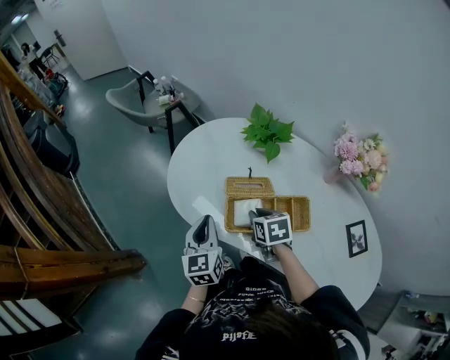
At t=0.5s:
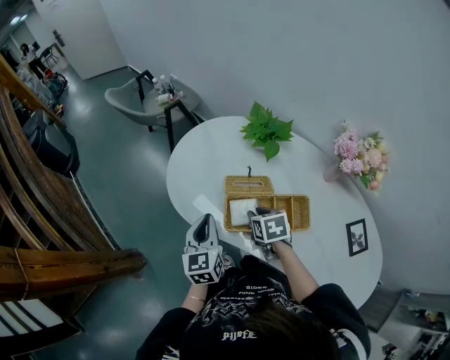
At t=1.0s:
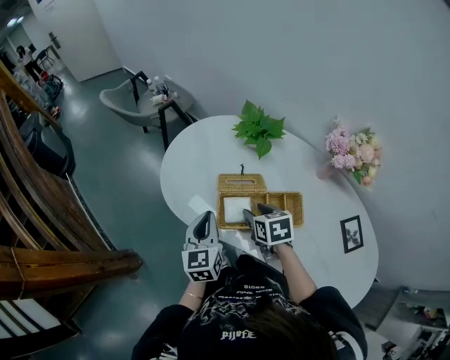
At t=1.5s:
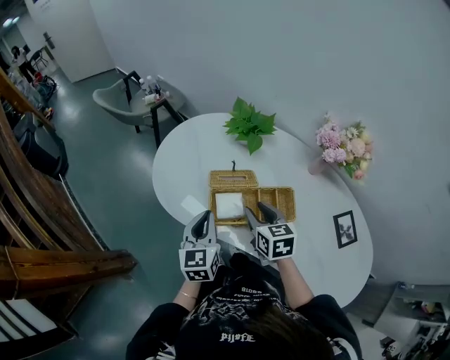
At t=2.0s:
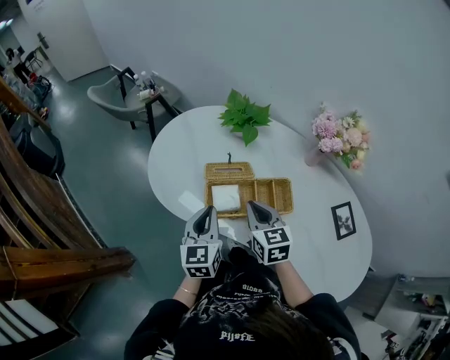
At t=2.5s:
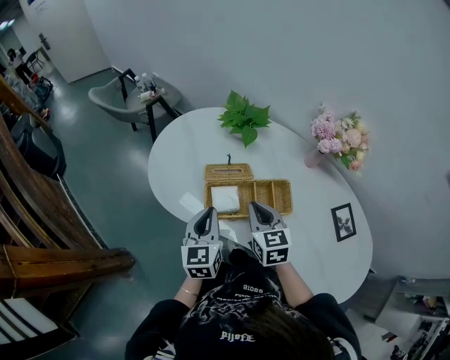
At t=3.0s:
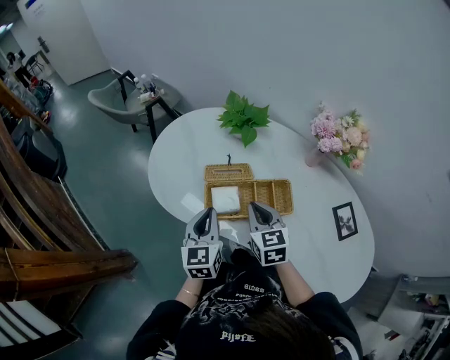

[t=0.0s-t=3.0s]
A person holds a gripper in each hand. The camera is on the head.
t=0.0s to t=1.5s: The right gripper is displaced upward by approximately 5 cm, and opens its fingers; the left gripper goes approximately 5 cm to the right.
t=1.5s to t=3.0s: The right gripper closes up.

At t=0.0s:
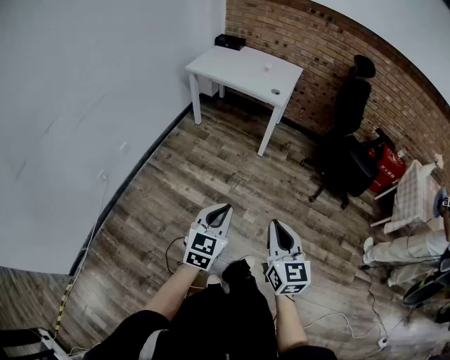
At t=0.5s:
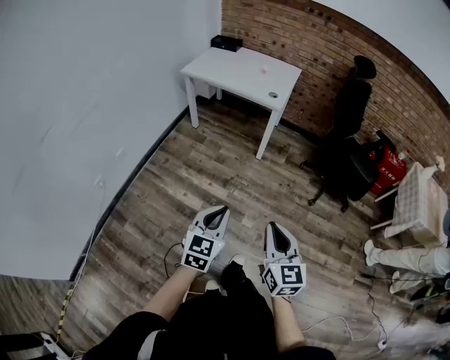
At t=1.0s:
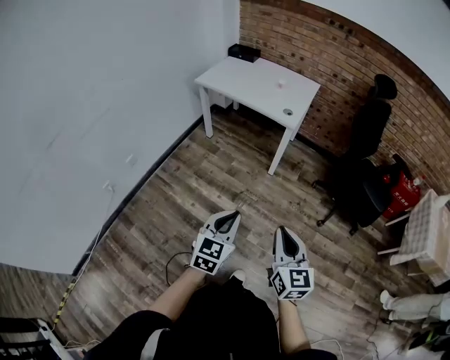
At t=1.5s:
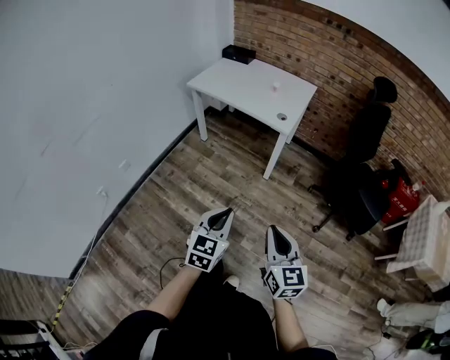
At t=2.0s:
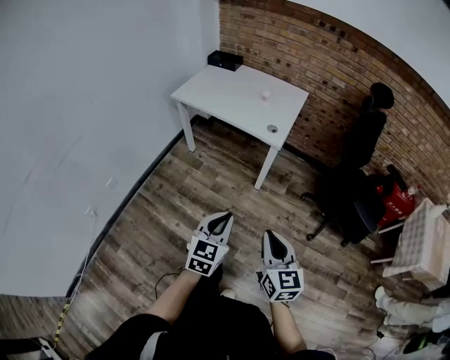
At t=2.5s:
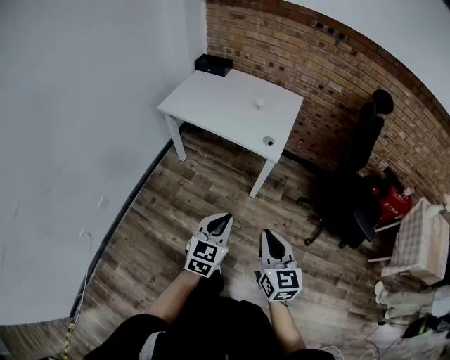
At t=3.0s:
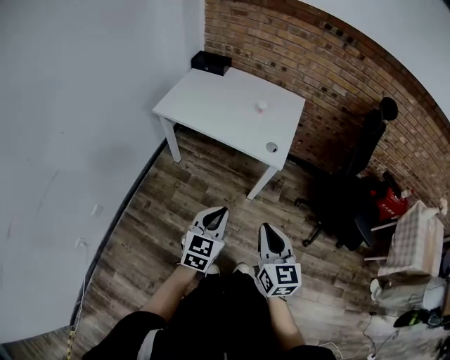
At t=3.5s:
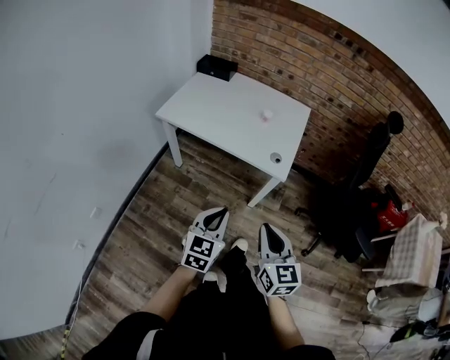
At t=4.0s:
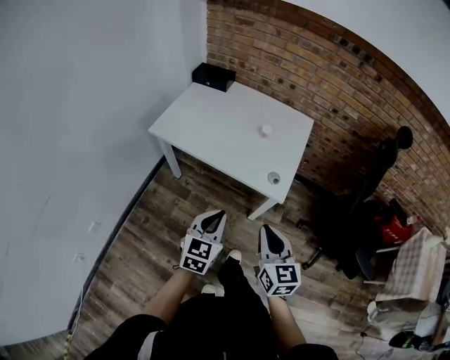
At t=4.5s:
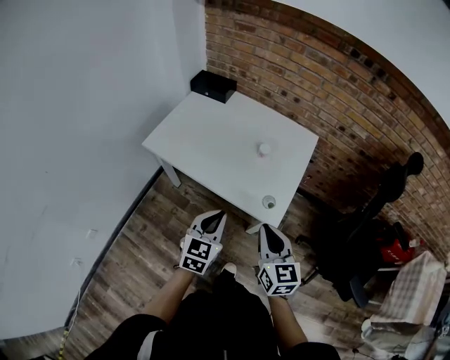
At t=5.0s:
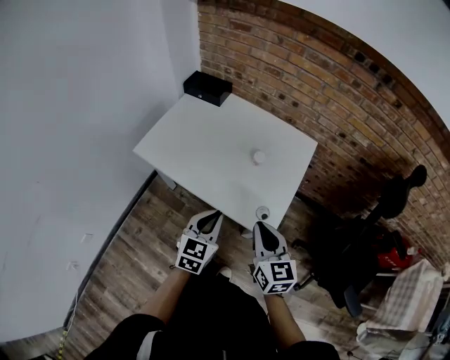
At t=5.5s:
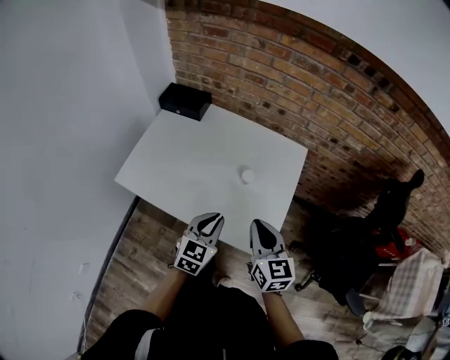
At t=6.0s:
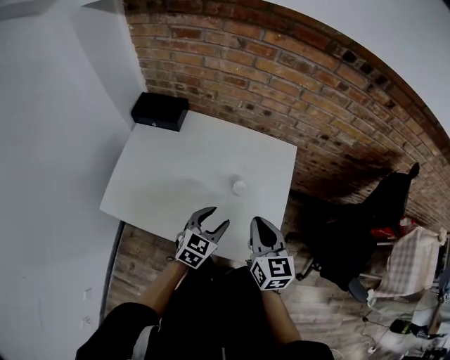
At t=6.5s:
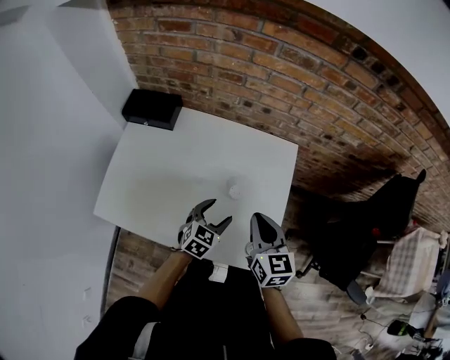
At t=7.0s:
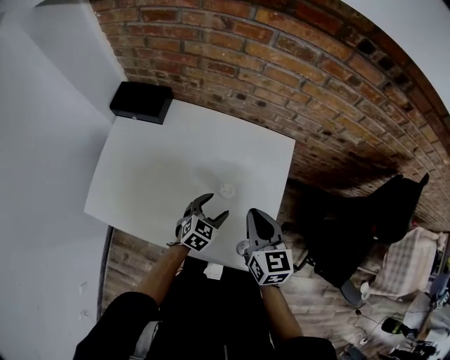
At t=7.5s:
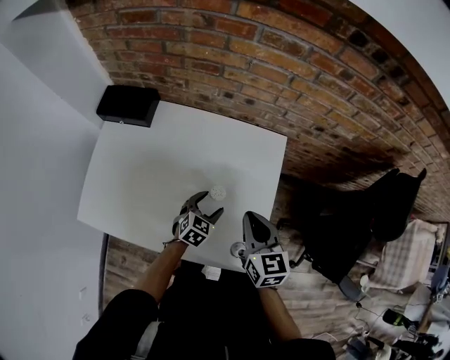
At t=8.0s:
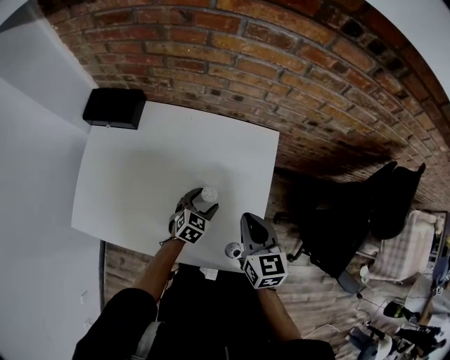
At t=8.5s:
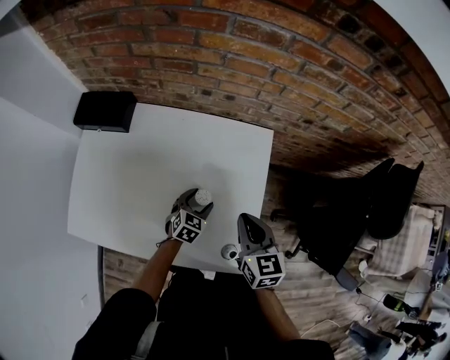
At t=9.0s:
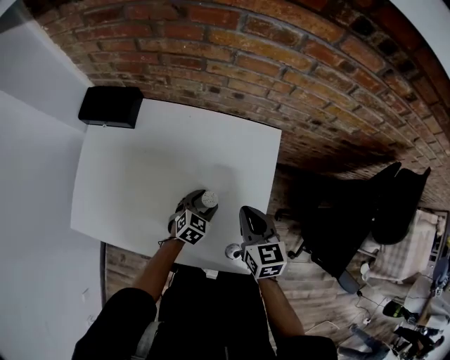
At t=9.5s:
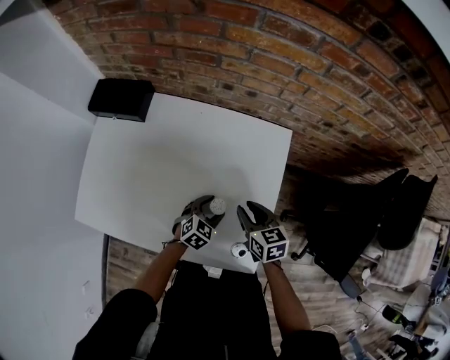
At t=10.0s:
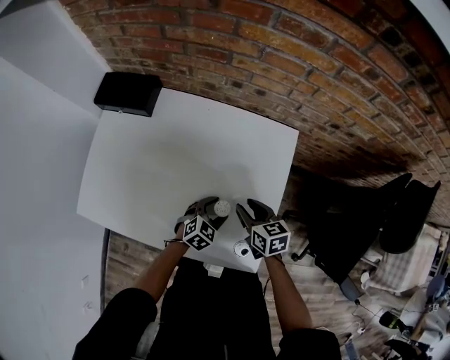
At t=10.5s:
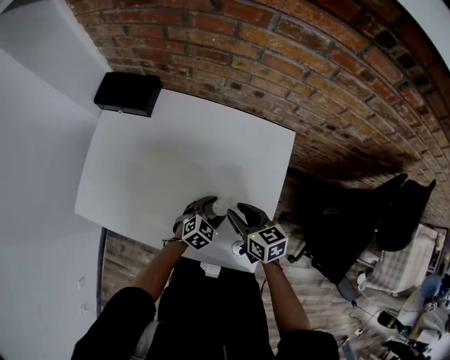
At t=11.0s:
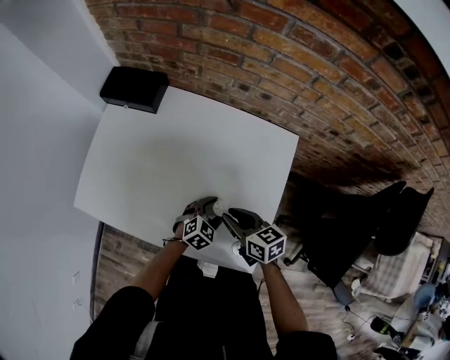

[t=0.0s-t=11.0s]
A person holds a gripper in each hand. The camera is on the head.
t=0.0s to t=2.0s: The grippers both shift forward by roughly 35 cm.
t=2.0s to t=3.5s: Both grippers move forward and to the left, about 25 cm.
t=3.5s to t=5.5s: The pair of grippers is taken forward, about 40 cm.
t=5.5s to t=7.5s: The right gripper goes roughly 15 cm forward; the left gripper heads forward and downward, covering some 25 cm, swivels approximately 20 degrees, and opens.
t=7.5s to t=9.0s: The right gripper goes about 5 cm downward.
t=9.0s to t=11.0s: The right gripper moves to the left and downward, some 10 cm, changes its angle by roughly 30 degrees, and opens its fingers. Meanwhile the left gripper goes approximately 5 cm backward.

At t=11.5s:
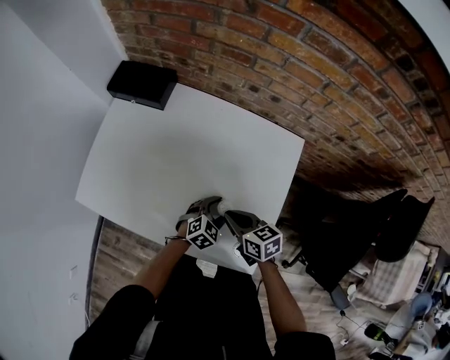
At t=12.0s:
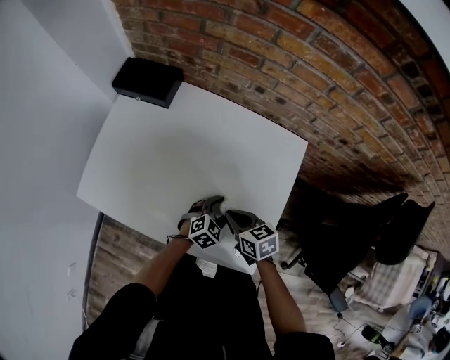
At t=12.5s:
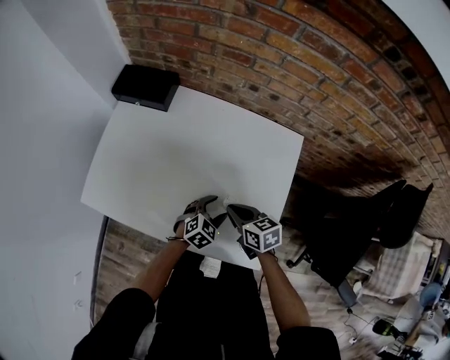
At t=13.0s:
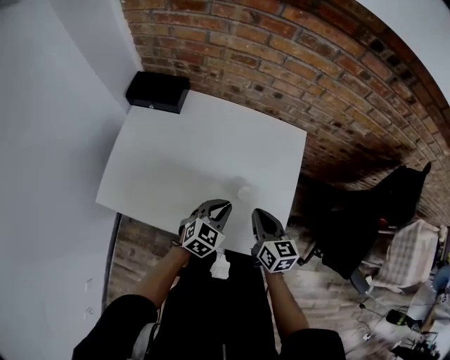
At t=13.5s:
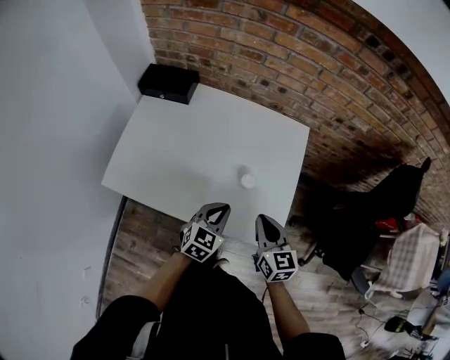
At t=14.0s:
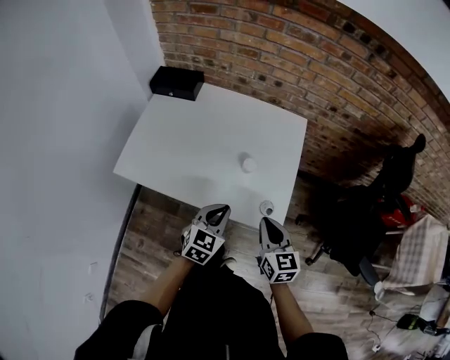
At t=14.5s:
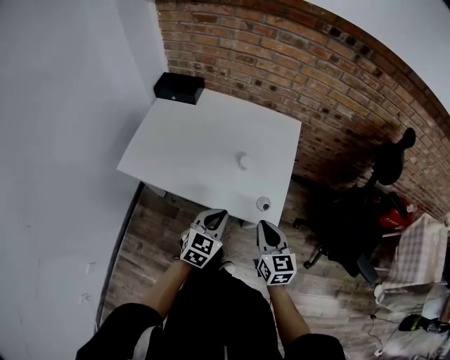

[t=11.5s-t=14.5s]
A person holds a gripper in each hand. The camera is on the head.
t=11.5s to t=13.0s: The left gripper shifts approximately 15 cm upward and to the left, and closes up, while the right gripper shifts approximately 5 cm upward, and changes its angle by about 30 degrees.
t=13.0s to t=14.5s: The grippers both shift backward by roughly 20 cm.

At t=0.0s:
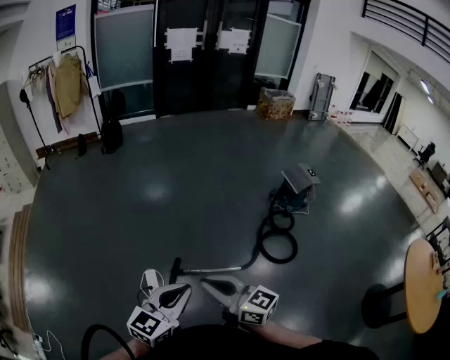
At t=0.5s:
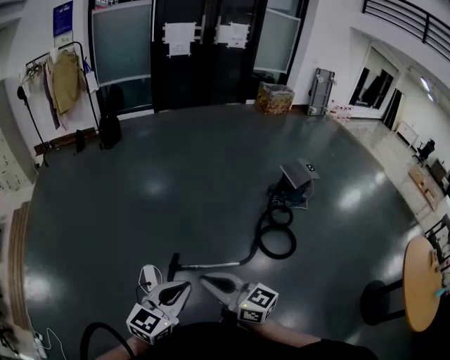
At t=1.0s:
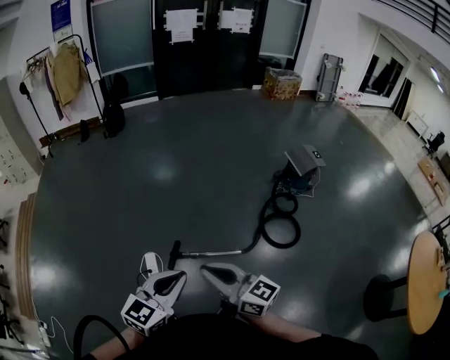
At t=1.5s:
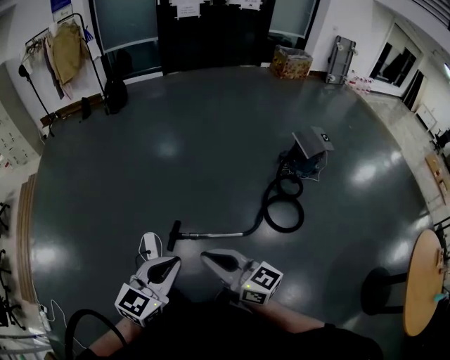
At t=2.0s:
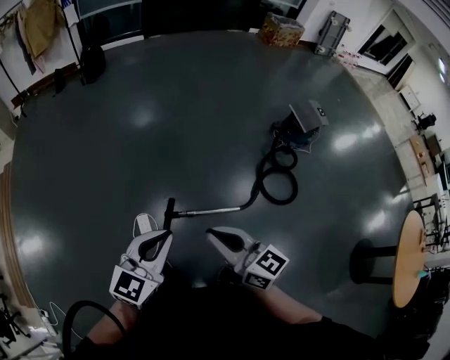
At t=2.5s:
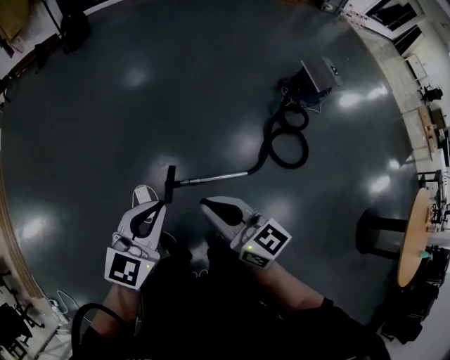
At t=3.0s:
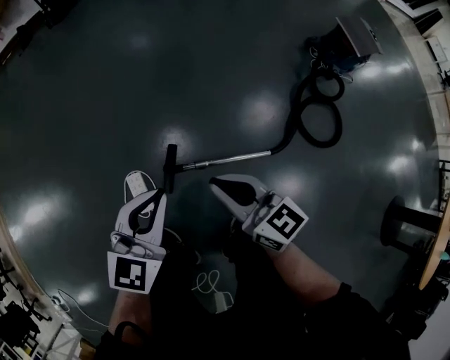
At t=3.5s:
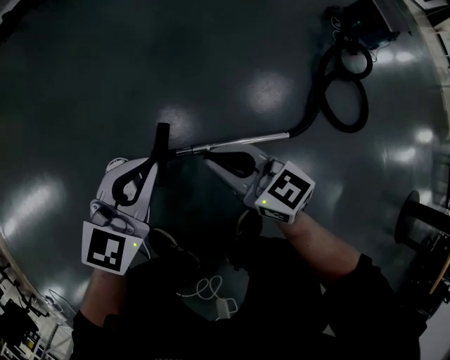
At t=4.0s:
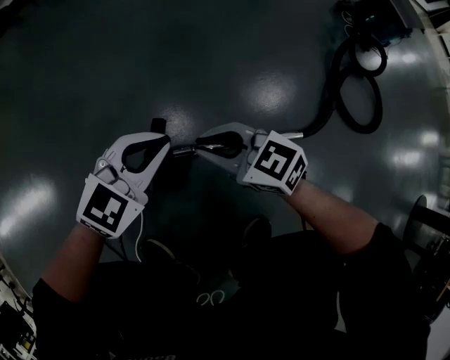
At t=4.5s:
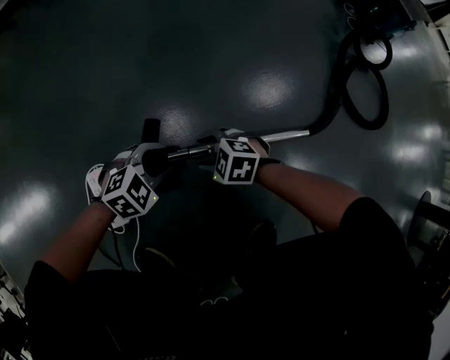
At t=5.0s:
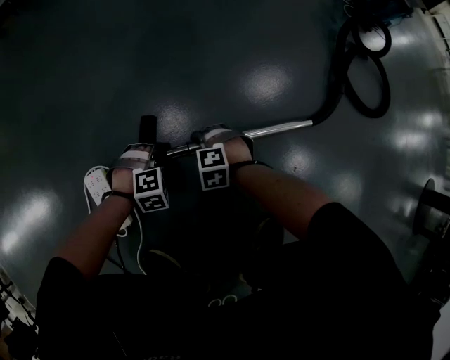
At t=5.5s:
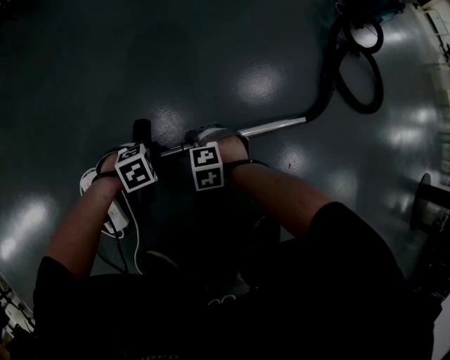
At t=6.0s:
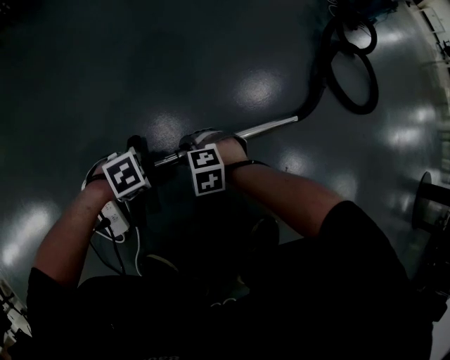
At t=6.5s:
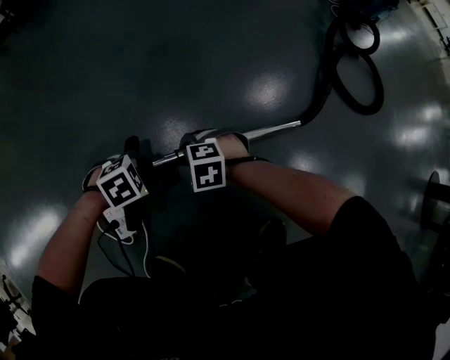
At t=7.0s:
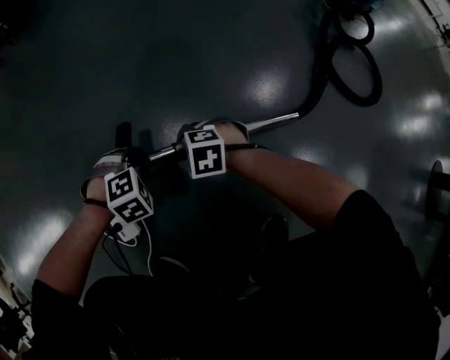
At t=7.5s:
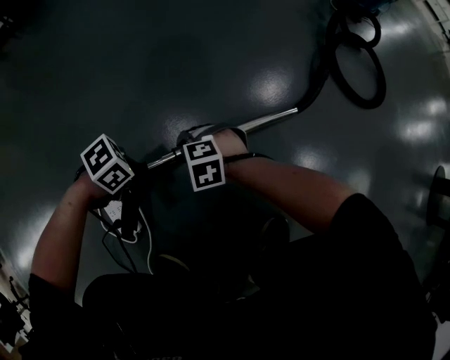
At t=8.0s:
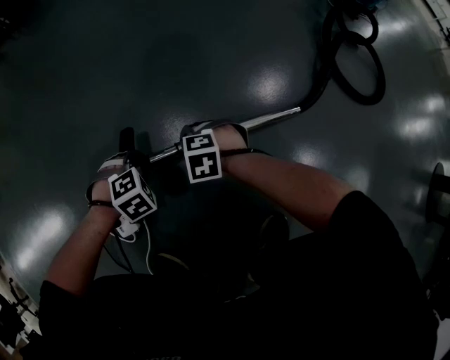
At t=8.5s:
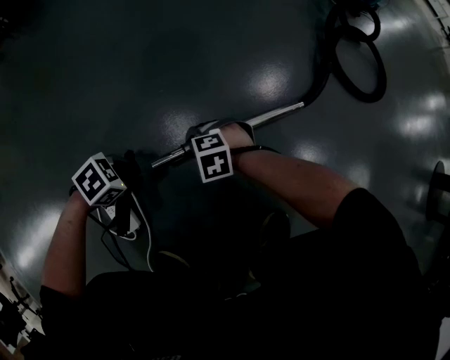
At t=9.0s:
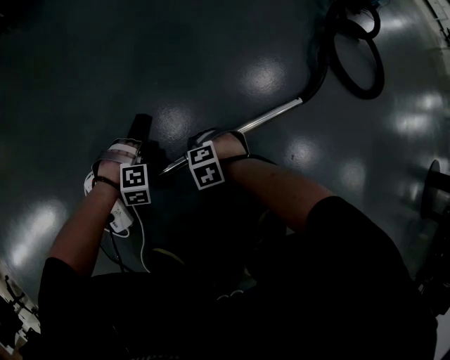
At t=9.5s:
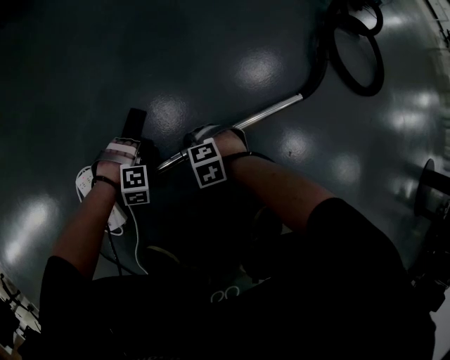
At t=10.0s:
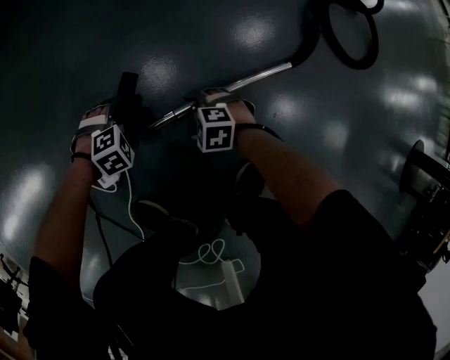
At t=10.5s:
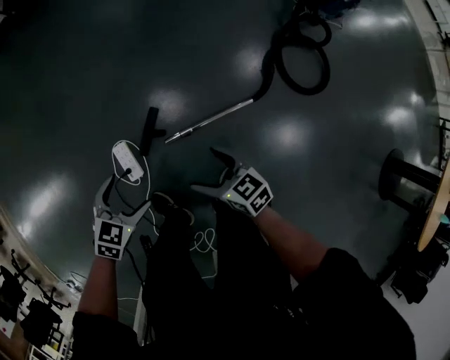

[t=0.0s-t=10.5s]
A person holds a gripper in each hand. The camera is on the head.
t=0.0s to t=2.0s: The right gripper heads forward and downward, covering approximately 15 cm. Meanwhile the left gripper moves forward and to the left, approximately 15 cm.
t=2.0s to t=4.0s: Both grippers travel together downward, roughly 70 cm. The left gripper rotates about 30 degrees. Meanwhile the right gripper swivels some 30 degrees.
t=4.0s to t=6.5s: Both grippers travel together downward, roughly 25 cm. The right gripper tips its fingers downward by about 40 degrees; the left gripper angles its fingers downward, by roughly 40 degrees.
t=8.5s to t=10.5s: Both grippers travel together upward, about 40 cm. The left gripper changes its angle by approximately 40 degrees, and opens. The right gripper rolls clockwise, seen from behind, by approximately 60 degrees, and opens its fingers.
